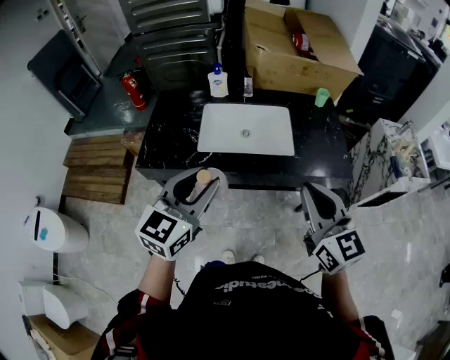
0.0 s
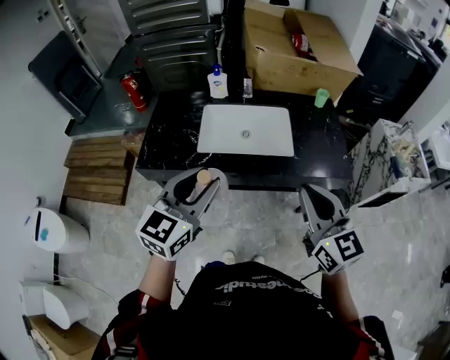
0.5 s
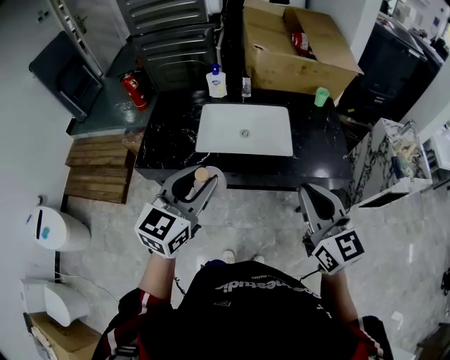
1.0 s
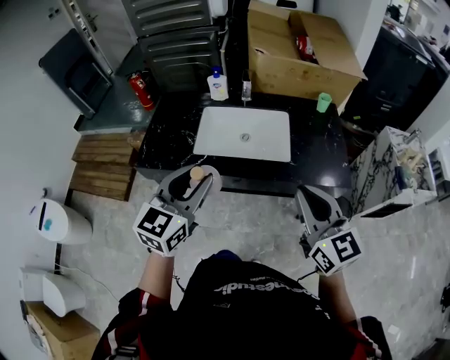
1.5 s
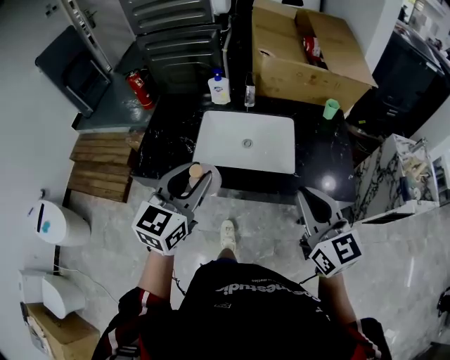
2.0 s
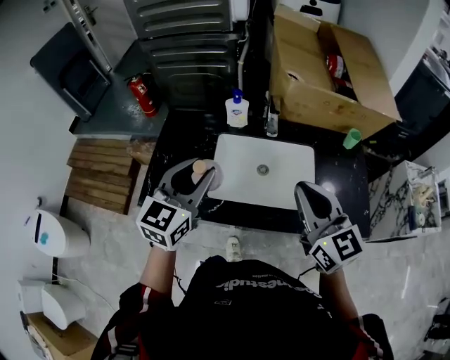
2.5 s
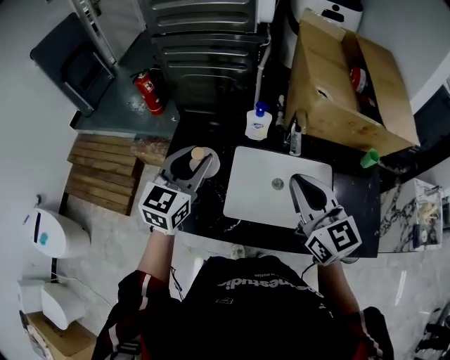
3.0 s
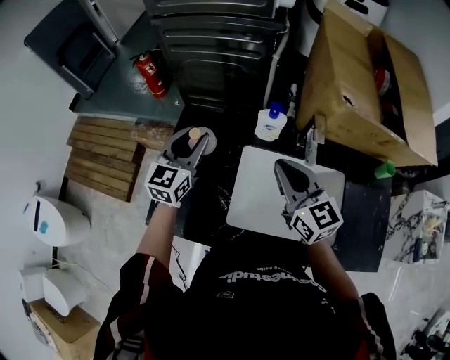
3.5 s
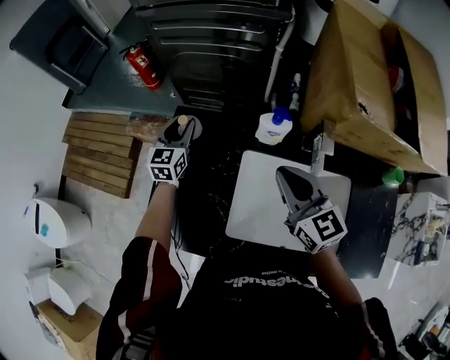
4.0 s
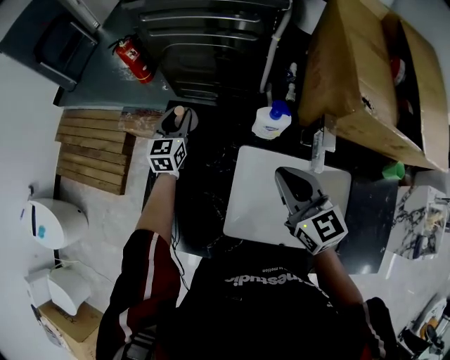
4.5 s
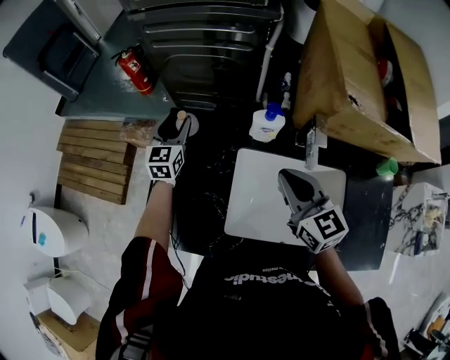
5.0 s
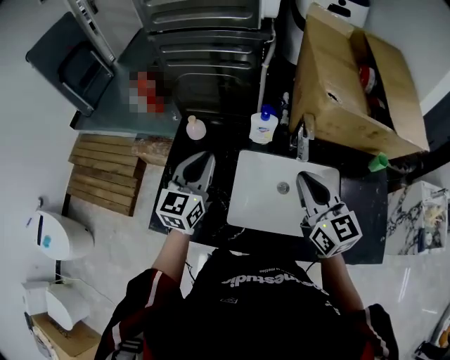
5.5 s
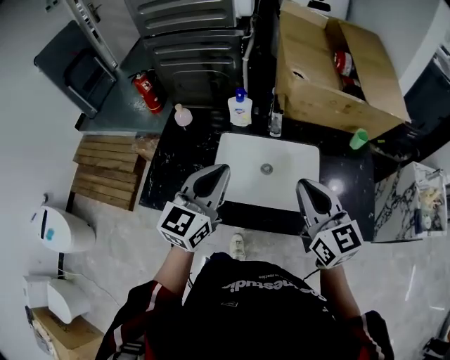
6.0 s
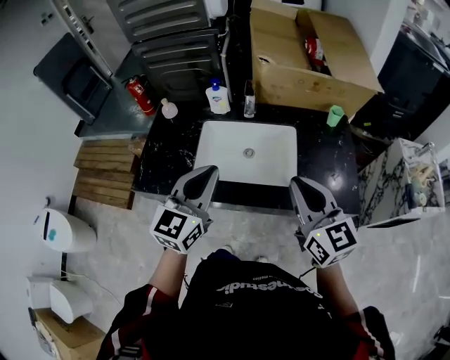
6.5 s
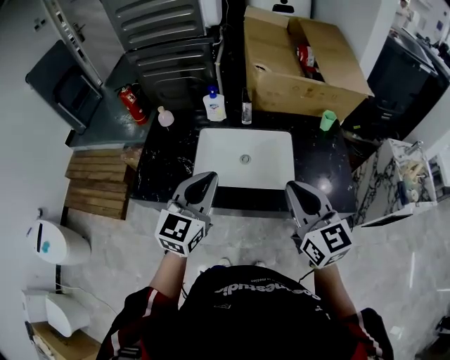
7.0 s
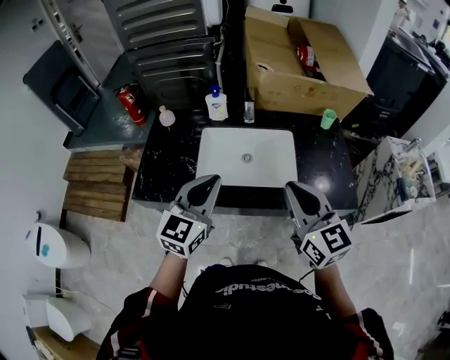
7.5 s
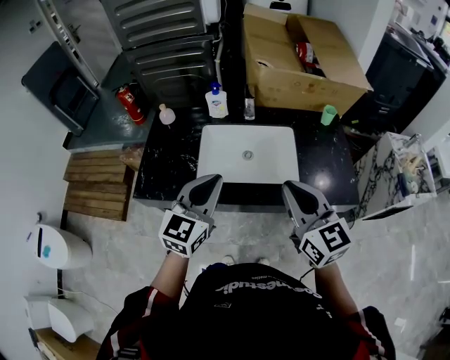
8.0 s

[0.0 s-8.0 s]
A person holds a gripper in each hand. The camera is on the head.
0.0 to 2.0 s: The grippers both shift forward by roughly 10 cm.
2.0 to 4.0 s: The pair of grippers is taken forward and to the left, some 50 cm.
4.0 to 6.0 s: The left gripper is displaced backward, upward and to the right by roughly 50 cm, swivels roughly 20 degrees, and closes. Meanwhile the right gripper goes roughly 30 cm backward and to the right.
6.0 to 8.0 s: Both grippers travel together backward, about 15 cm.

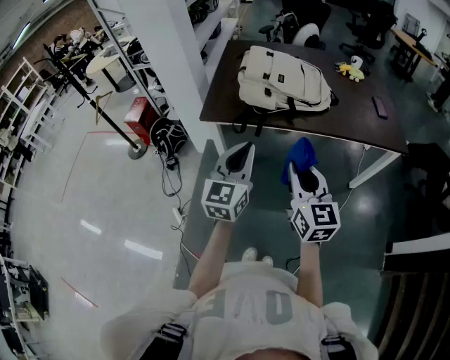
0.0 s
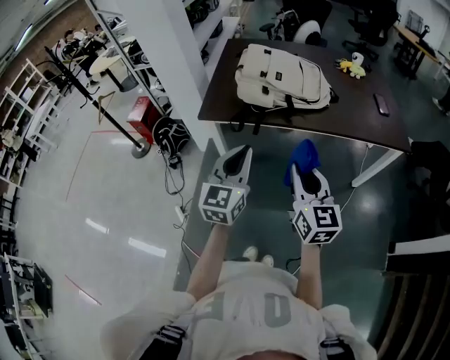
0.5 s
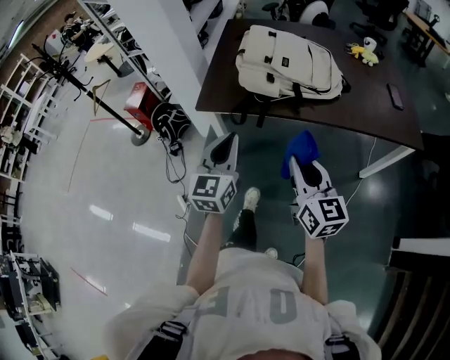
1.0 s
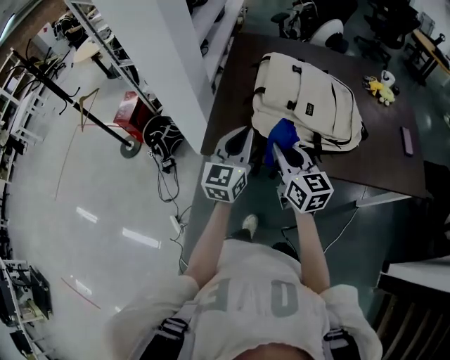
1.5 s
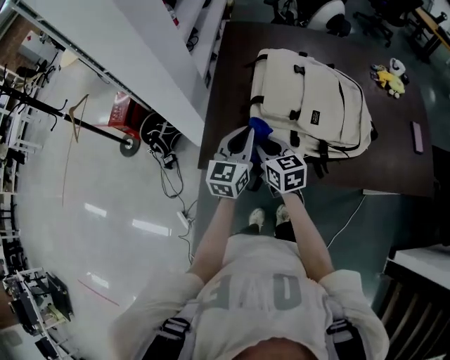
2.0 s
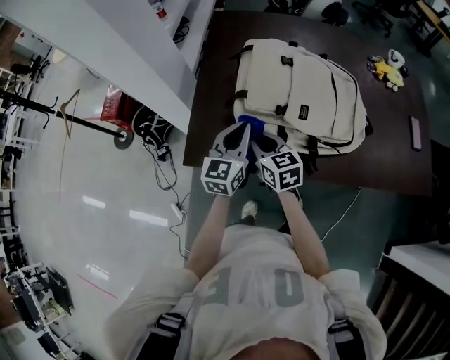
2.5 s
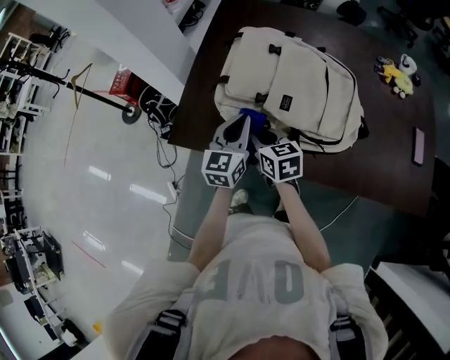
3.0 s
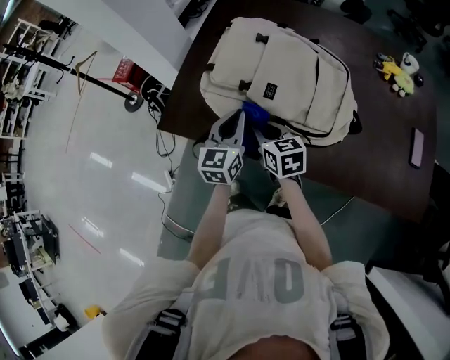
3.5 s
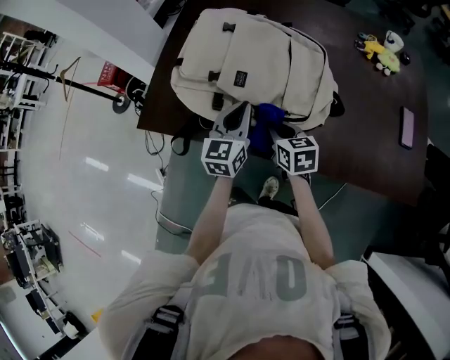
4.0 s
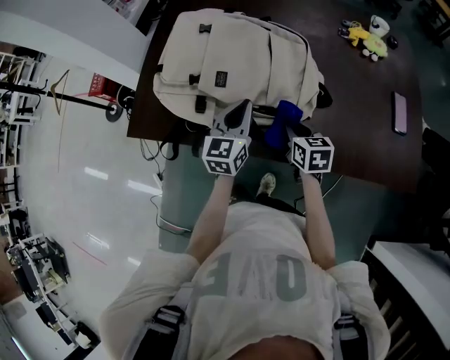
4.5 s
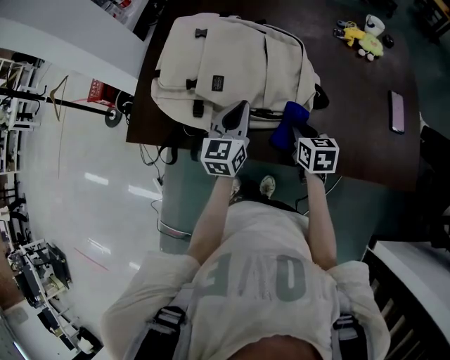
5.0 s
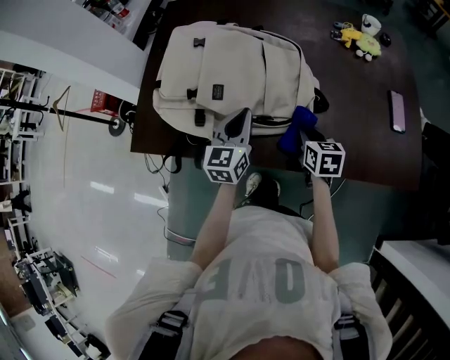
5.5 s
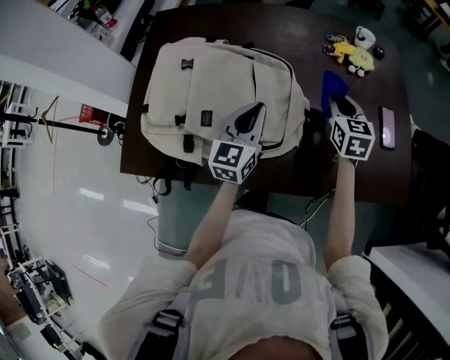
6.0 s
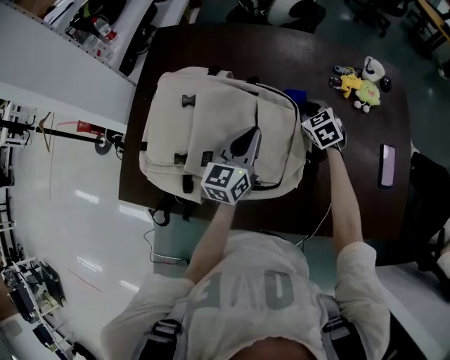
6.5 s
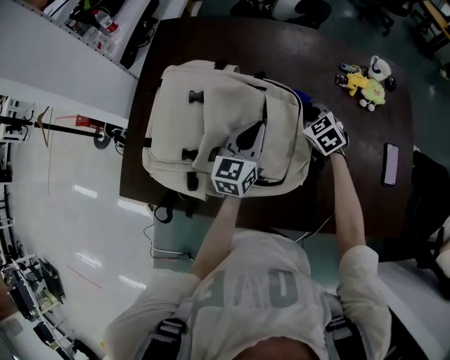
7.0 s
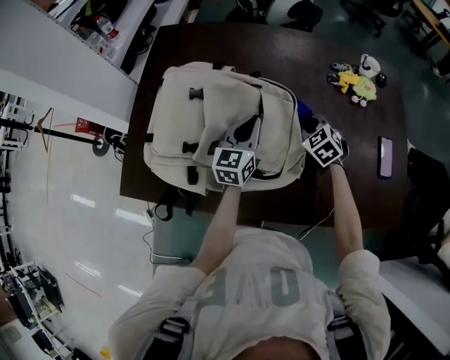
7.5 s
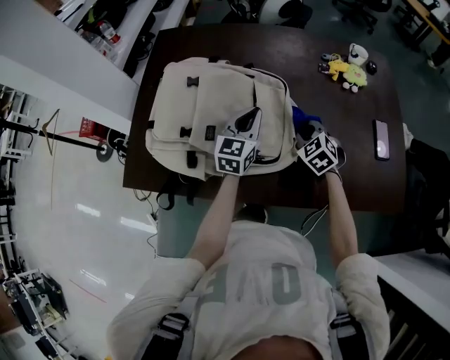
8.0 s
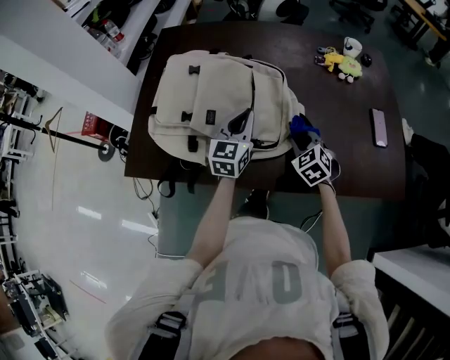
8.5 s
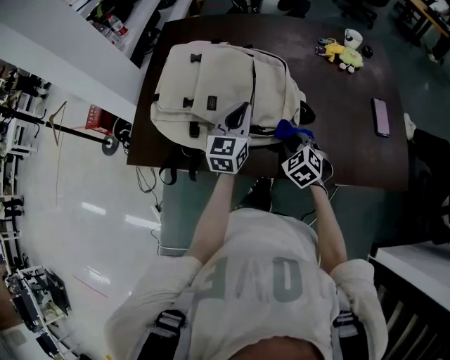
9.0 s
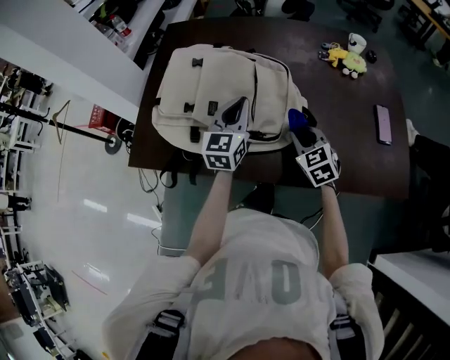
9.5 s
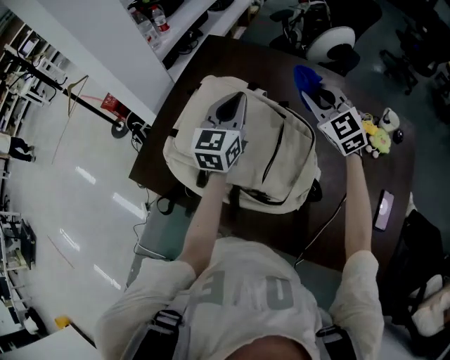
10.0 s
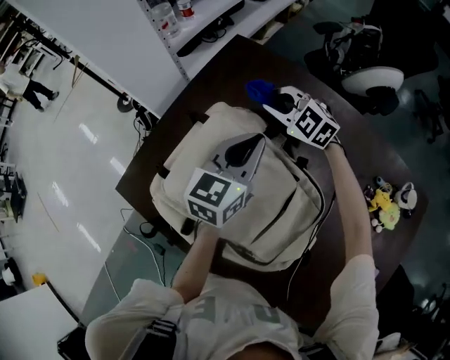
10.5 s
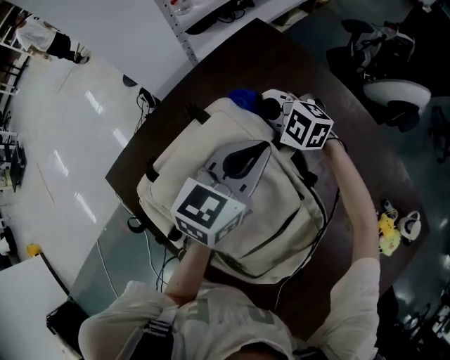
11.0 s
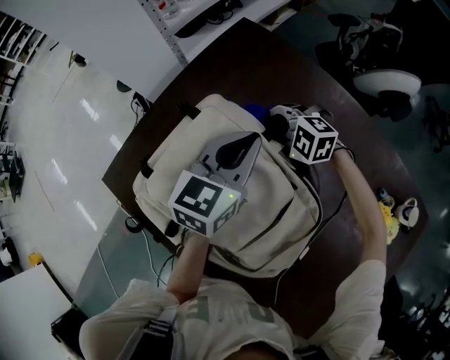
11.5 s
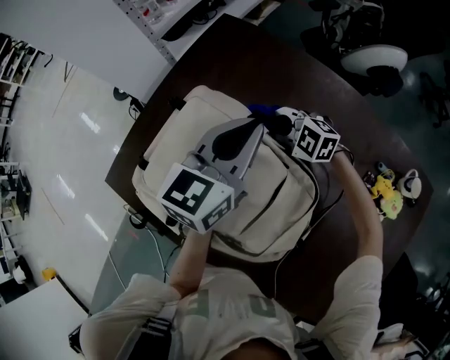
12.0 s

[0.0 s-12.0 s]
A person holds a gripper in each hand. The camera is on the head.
0.0 to 2.0 s: The two grippers travel together, forward, approximately 40 cm. The right gripper changes its angle by approximately 30 degrees.
2.0 to 4.0 s: The two grippers go about 25 cm to the right.
4.0 to 6.0 s: The left gripper is displaced to the right and forward by about 15 cm; the right gripper moves to the right and forward, roughly 30 cm, and turns by approximately 30 degrees.
6.0 to 8.0 s: The right gripper shifts about 15 cm to the left and downward, reaches some 10 cm forward, then returns, and rotates about 40 degrees.
8.0 to 10.0 s: The left gripper heads upward, to the left and forward, covering some 20 cm, and changes its angle by roughly 20 degrees; the right gripper moves upward, forward and to the left, about 30 cm, and turns by about 40 degrees.
10.0 to 12.0 s: The left gripper ends up some 10 cm from where it was. The right gripper moves downward, roughly 20 cm, and rotates approximately 50 degrees.

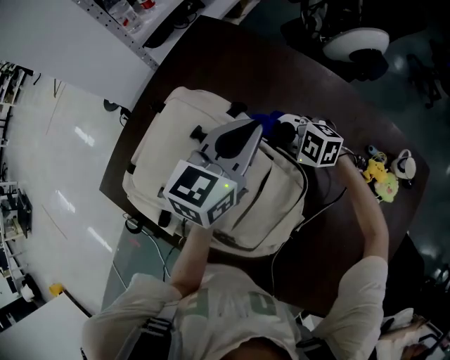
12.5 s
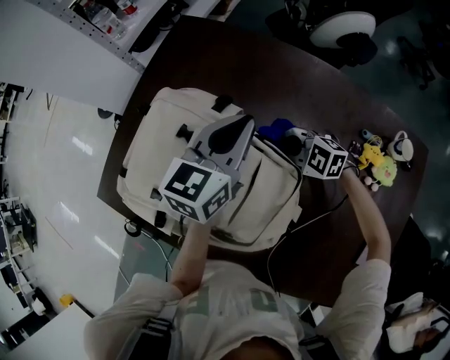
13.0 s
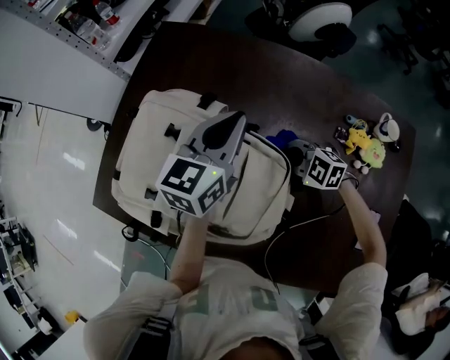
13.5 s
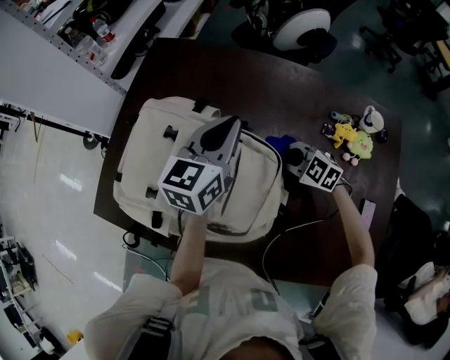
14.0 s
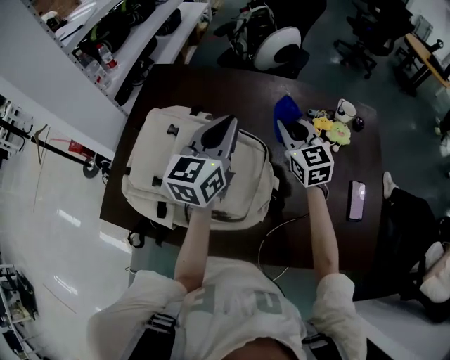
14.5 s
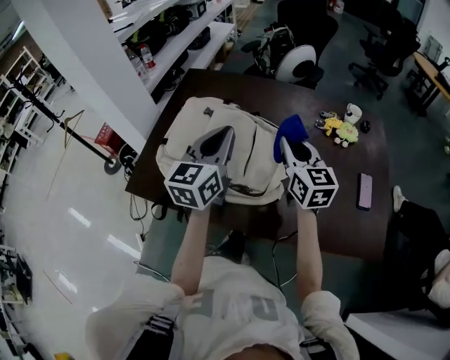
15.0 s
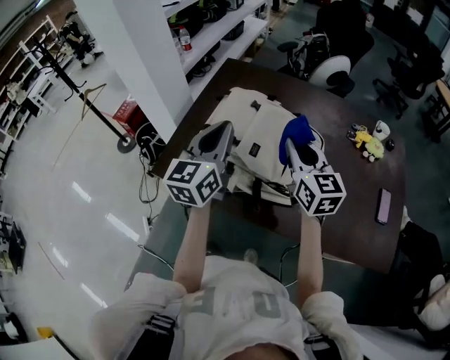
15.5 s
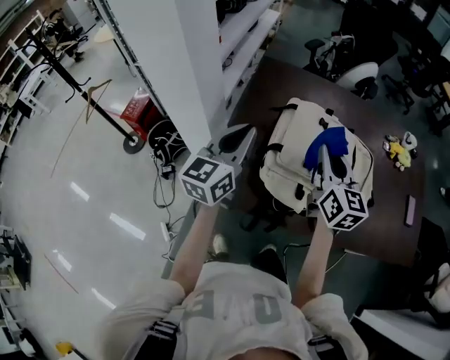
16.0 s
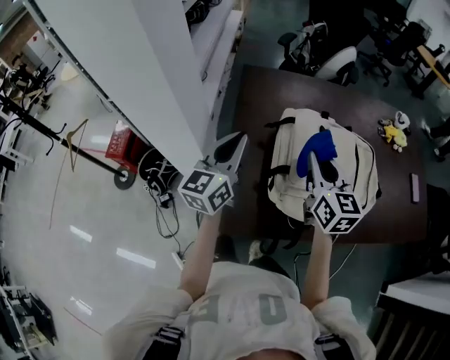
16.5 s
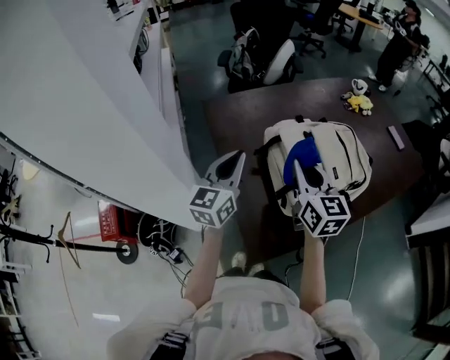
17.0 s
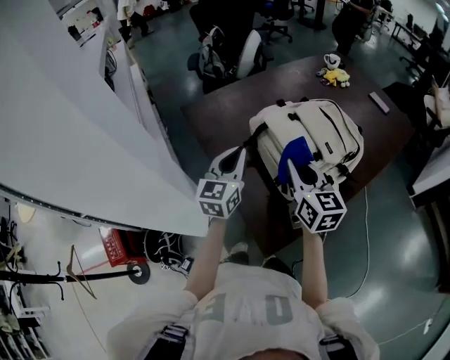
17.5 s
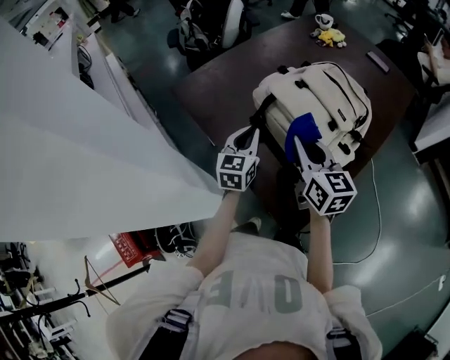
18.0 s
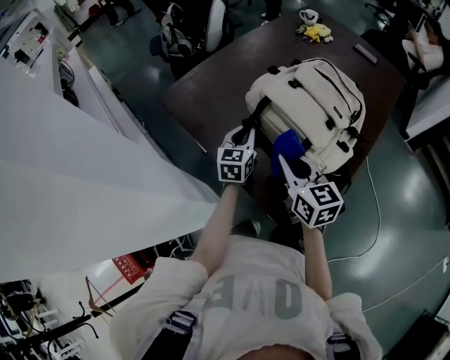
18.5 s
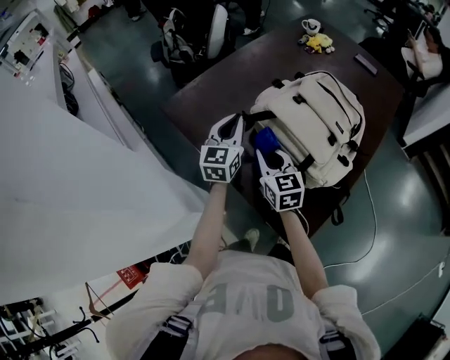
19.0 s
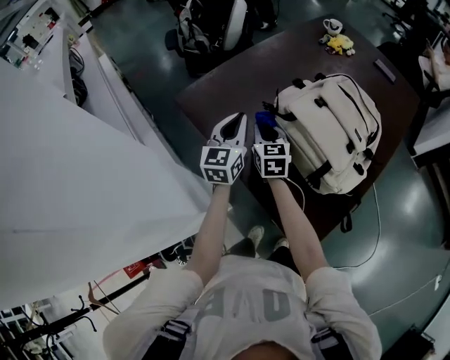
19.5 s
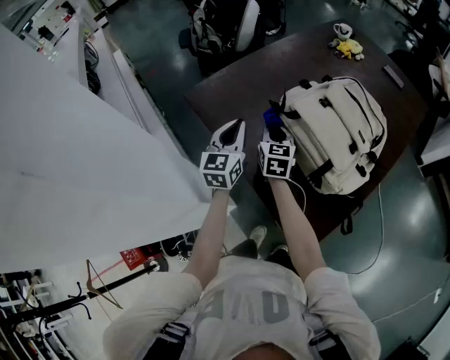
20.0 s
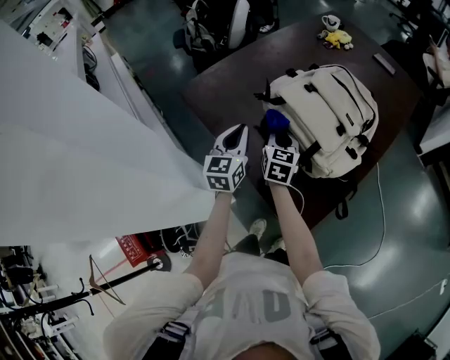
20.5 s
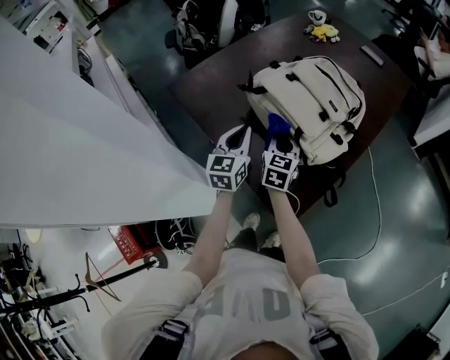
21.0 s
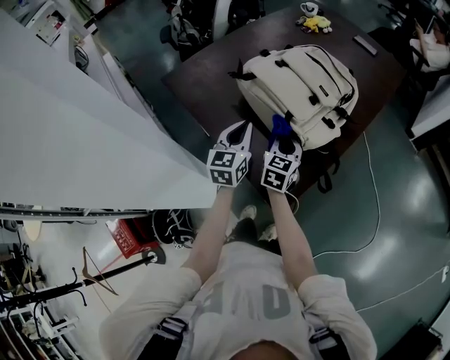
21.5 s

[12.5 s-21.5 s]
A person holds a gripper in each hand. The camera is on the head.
12.5 to 14.5 s: The left gripper changes place by roughly 15 cm. Meanwhile the right gripper moves some 25 cm, and changes its angle by some 80 degrees.
14.5 to 17.0 s: The pair of grippers is taken some 50 cm. The left gripper turns by about 30 degrees, while the right gripper turns by approximately 40 degrees.
17.0 to 19.5 s: The left gripper is displaced forward and downward by some 20 cm. The right gripper travels downward, forward and to the left by approximately 30 cm, and swivels about 30 degrees.
19.5 to 21.5 s: Both grippers travel together to the right and backward, about 25 cm. The right gripper rotates about 20 degrees.
